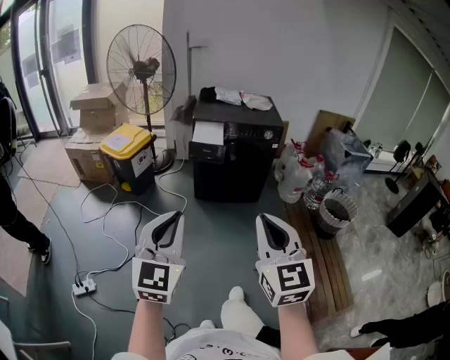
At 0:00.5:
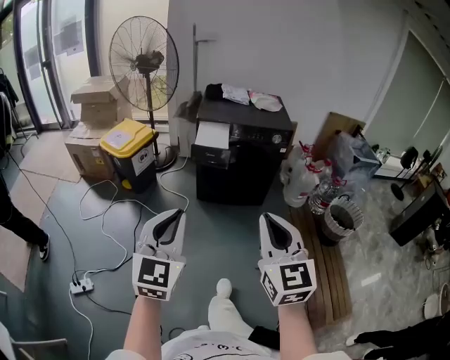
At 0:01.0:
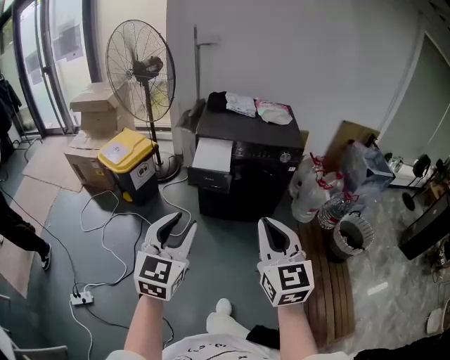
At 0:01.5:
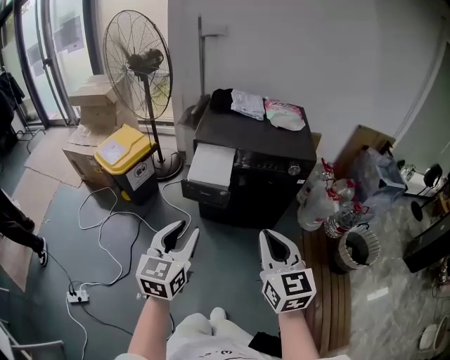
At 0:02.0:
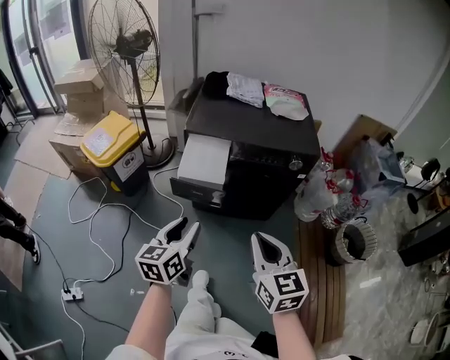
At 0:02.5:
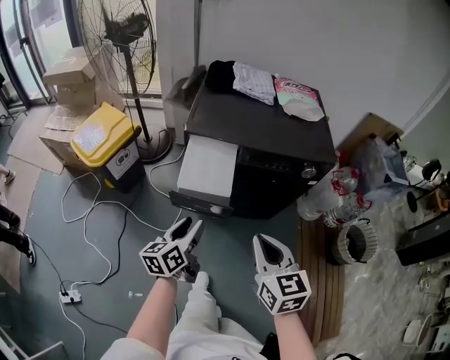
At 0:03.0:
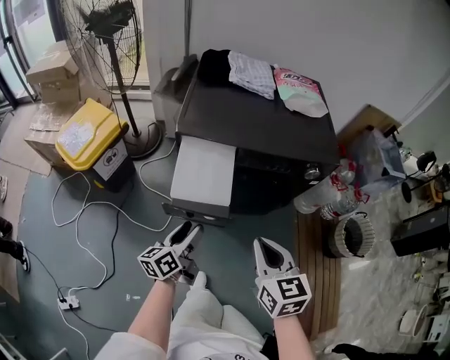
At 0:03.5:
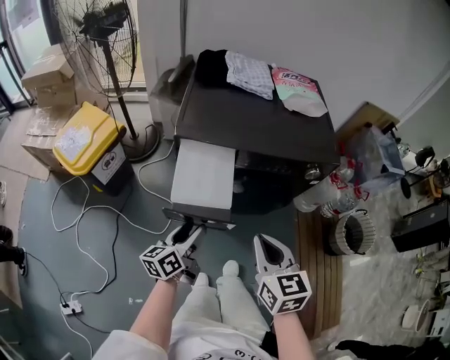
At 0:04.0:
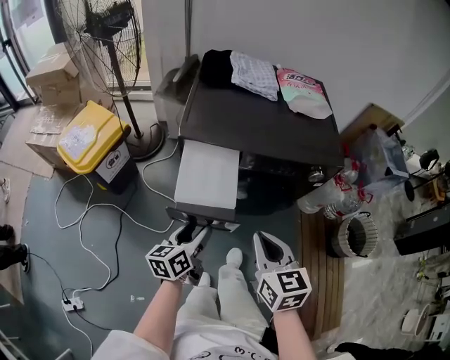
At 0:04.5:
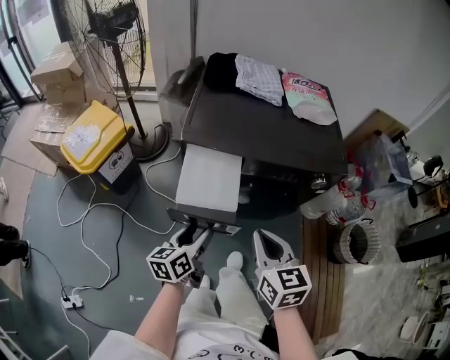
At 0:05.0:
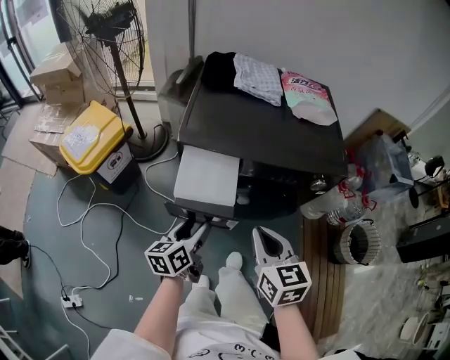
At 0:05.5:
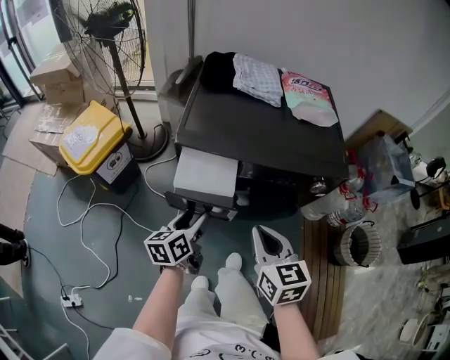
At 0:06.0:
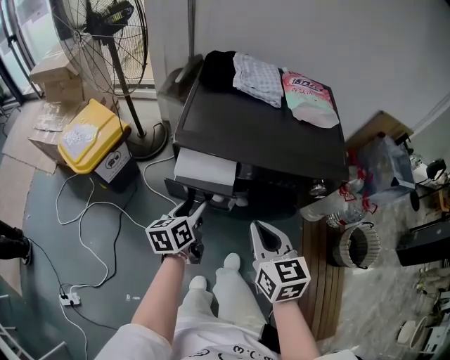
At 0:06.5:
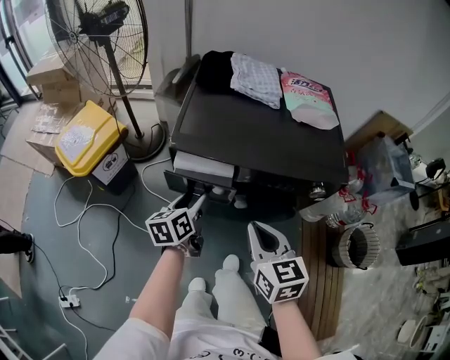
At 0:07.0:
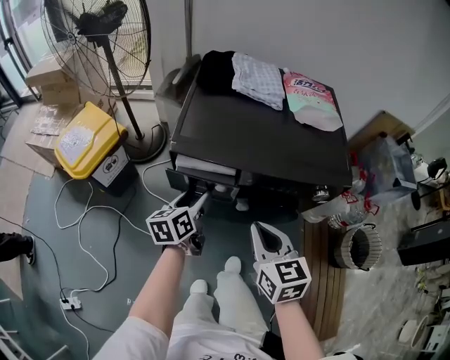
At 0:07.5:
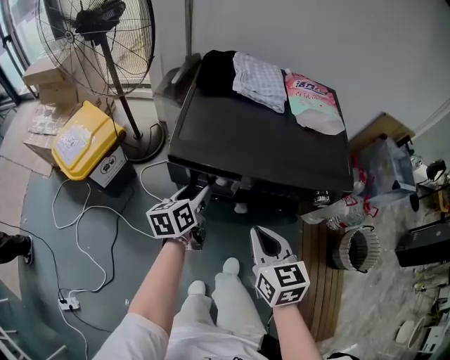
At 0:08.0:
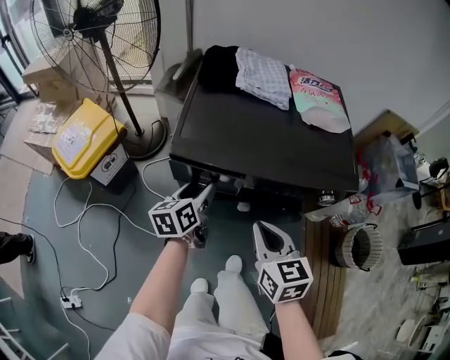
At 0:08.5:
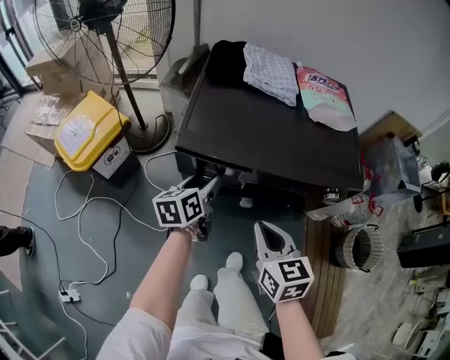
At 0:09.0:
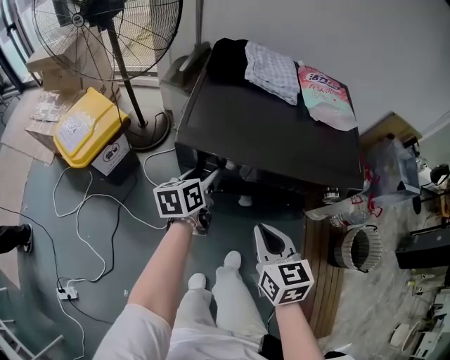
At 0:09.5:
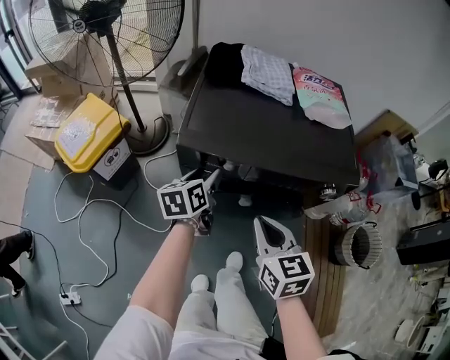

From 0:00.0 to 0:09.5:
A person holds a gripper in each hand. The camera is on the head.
From 0:00.0 to 0:02.0: The pair of grippers is taken forward, about 50 cm. The left gripper heads downward, covering roughly 20 cm, rotates about 40 degrees, and opens its fingers. Meanwhile the right gripper swivels some 20 degrees.
From 0:02.0 to 0:04.0: The two grippers go roughly 20 cm forward and downward.
From 0:04.0 to 0:05.5: Both grippers travel together forward, approximately 5 cm.
From 0:05.5 to 0:07.5: The left gripper goes roughly 10 cm forward. Meanwhile the right gripper heads forward, covering about 5 cm.
From 0:07.5 to 0:09.5: The grippers make only small movements.

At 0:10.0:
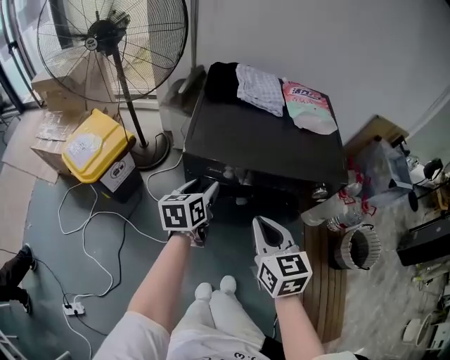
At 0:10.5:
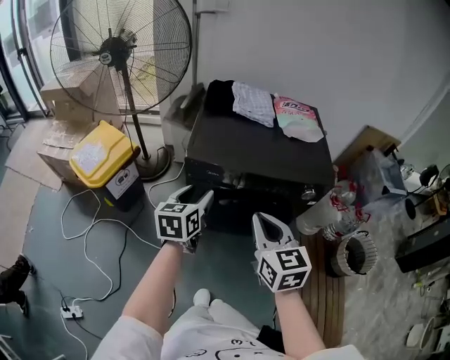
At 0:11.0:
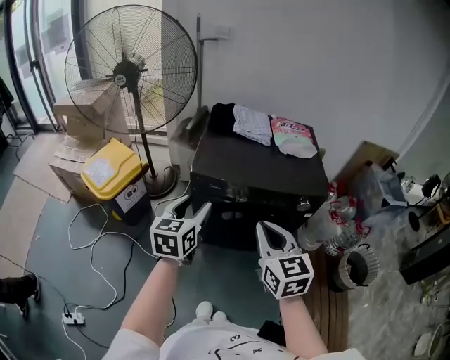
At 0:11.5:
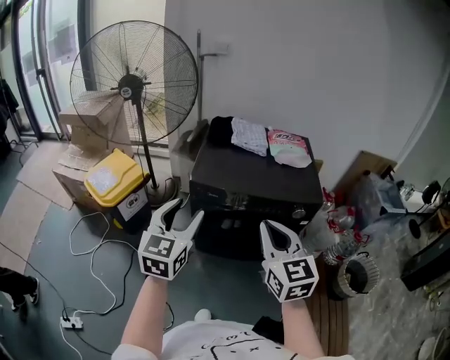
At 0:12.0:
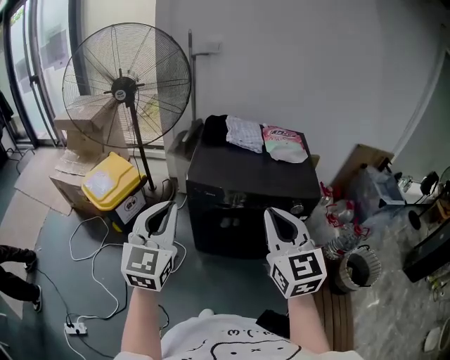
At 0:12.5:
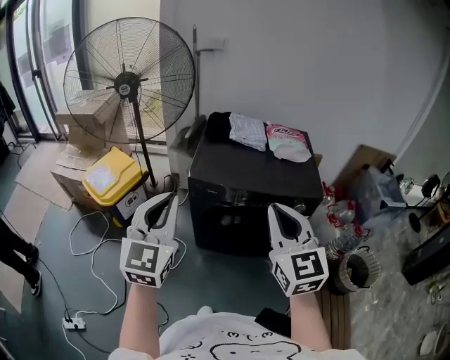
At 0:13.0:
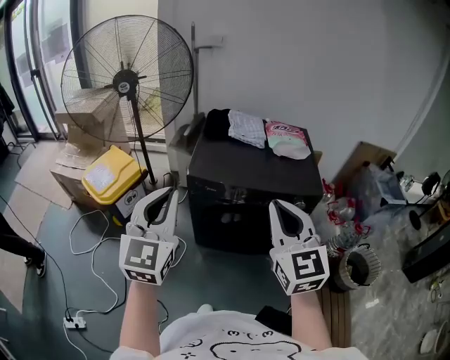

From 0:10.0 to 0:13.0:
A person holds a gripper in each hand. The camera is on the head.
From 0:10.0 to 0:11.5: The right gripper heads upward and backward, covering some 20 cm. Meanwhile the left gripper goes approximately 30 cm upward and backward, and swivels roughly 40 degrees.
From 0:11.5 to 0:13.0: The grippers both shift upward by approximately 5 cm. The left gripper closes up.

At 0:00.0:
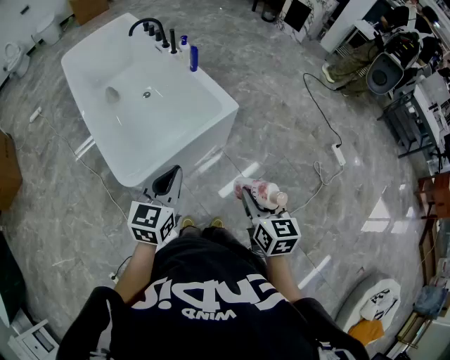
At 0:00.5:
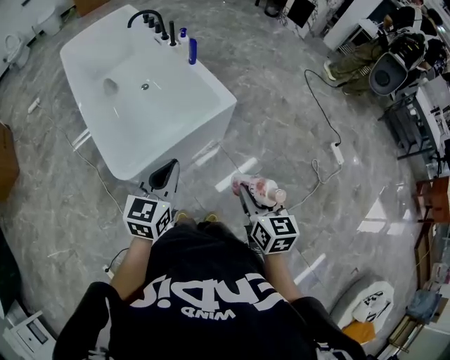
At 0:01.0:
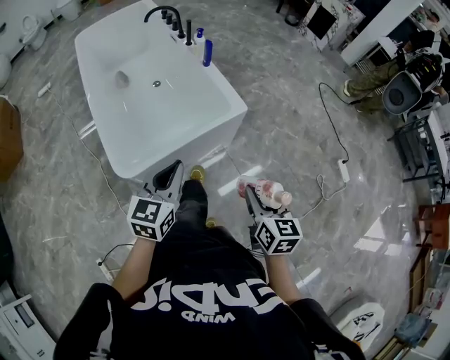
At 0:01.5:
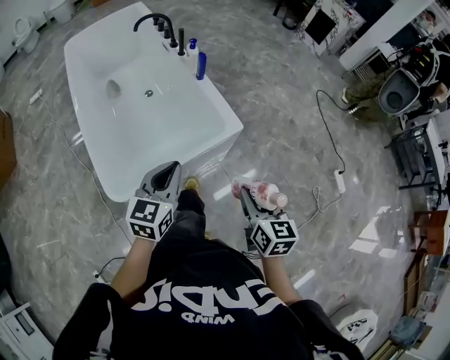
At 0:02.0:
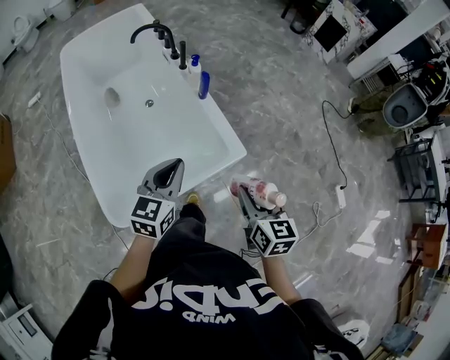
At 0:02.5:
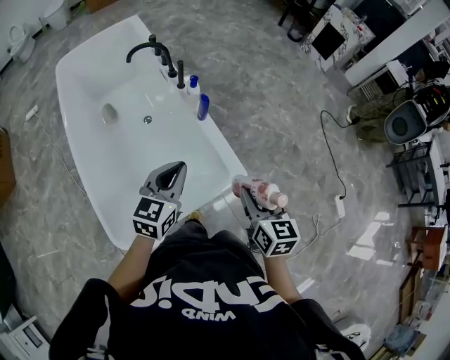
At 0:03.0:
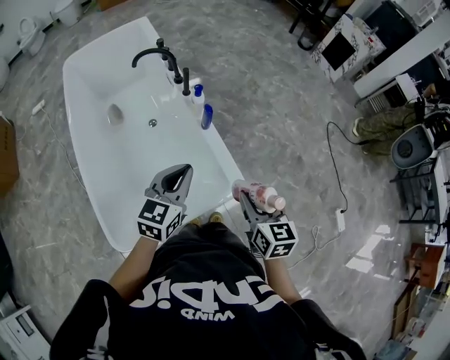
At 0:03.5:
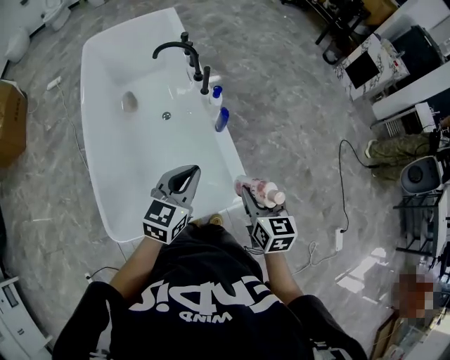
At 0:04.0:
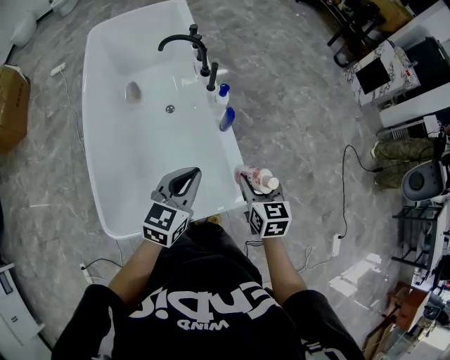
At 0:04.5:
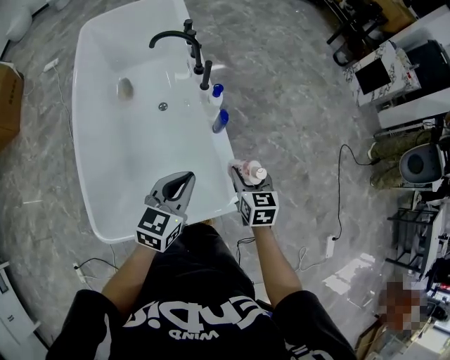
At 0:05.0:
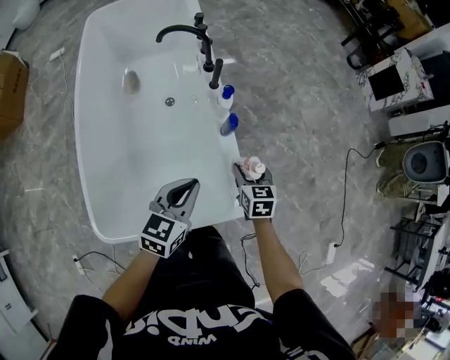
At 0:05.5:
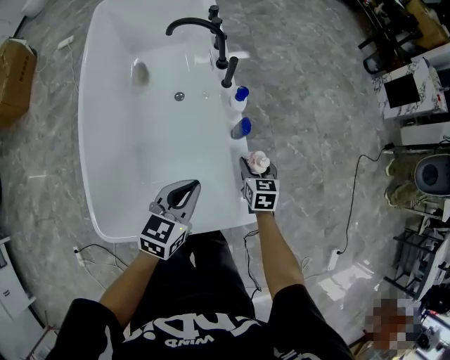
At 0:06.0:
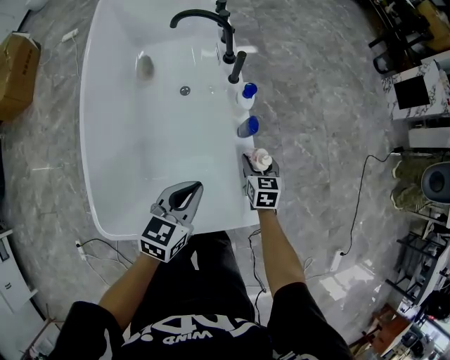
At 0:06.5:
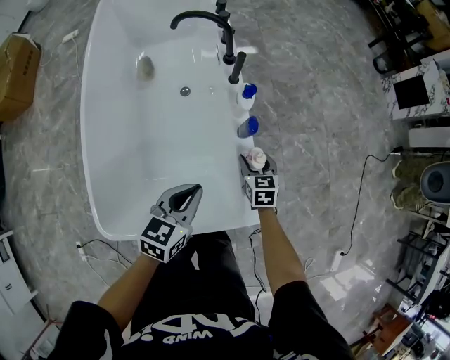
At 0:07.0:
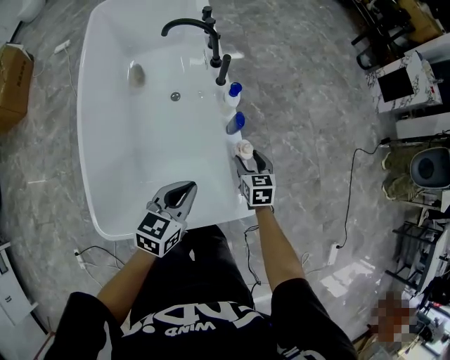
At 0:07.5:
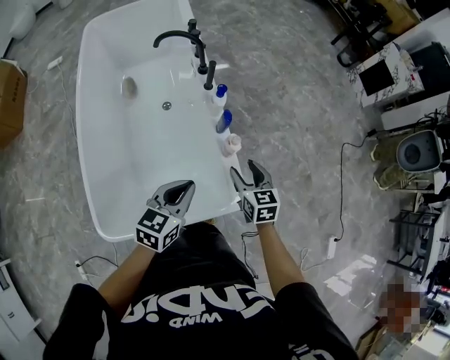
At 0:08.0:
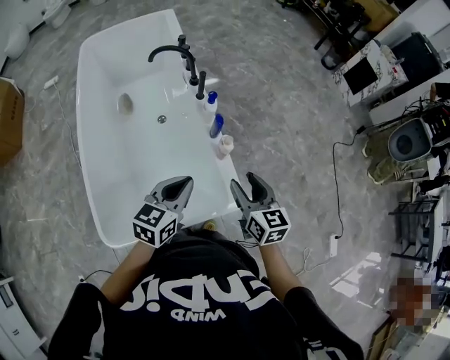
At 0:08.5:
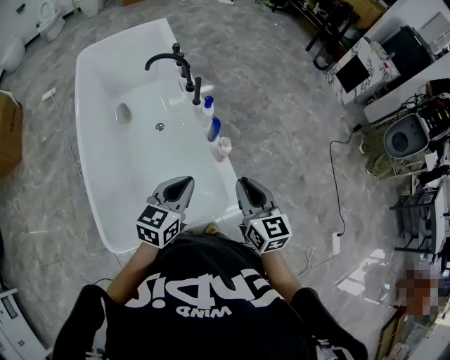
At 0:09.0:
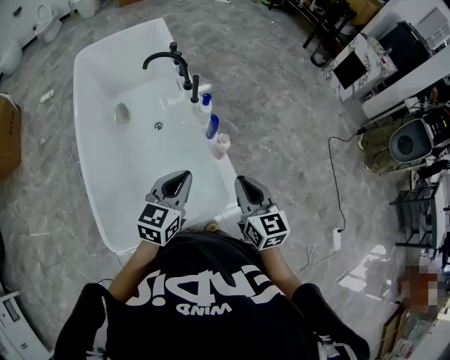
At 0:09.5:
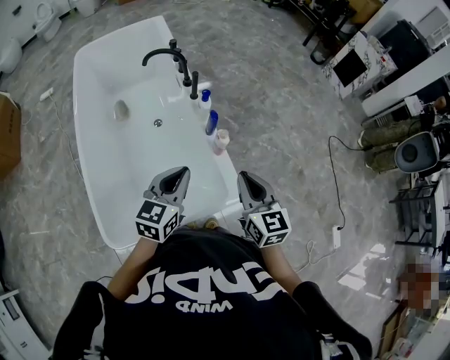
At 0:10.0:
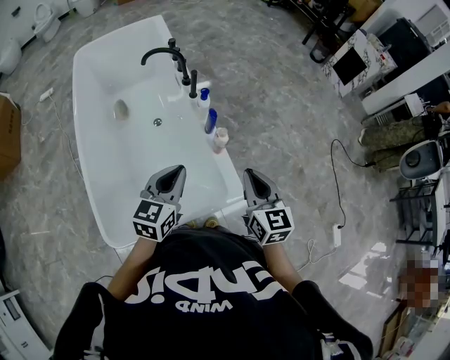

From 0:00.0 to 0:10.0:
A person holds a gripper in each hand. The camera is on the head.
From 0:00.0 to 0:02.0: Both grippers move forward, some 30 cm.
From 0:02.0 to 0:04.0: The right gripper travels forward by roughly 25 cm. The left gripper shifts roughly 15 cm forward.
From 0:04.0 to 0:06.0: The left gripper travels downward and forward by about 15 cm. The right gripper goes about 25 cm downward and forward.
From 0:06.0 to 0:08.0: The right gripper travels upward and backward by roughly 30 cm, and turns by about 20 degrees, while the left gripper is displaced upward and backward by roughly 15 cm.
From 0:08.0 to 0:10.0: The right gripper moves approximately 5 cm, and closes.

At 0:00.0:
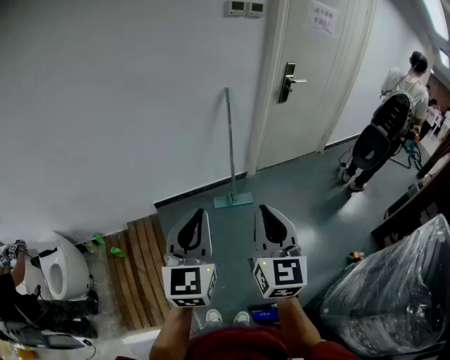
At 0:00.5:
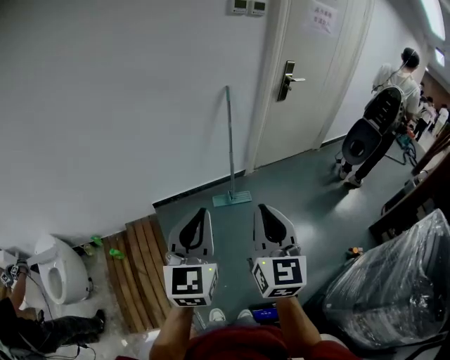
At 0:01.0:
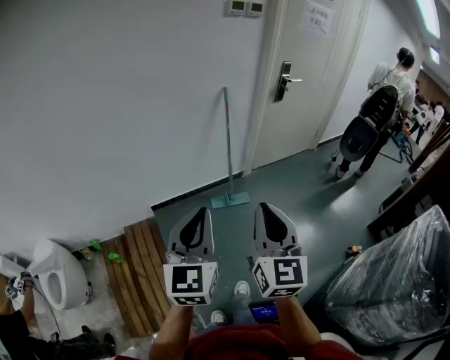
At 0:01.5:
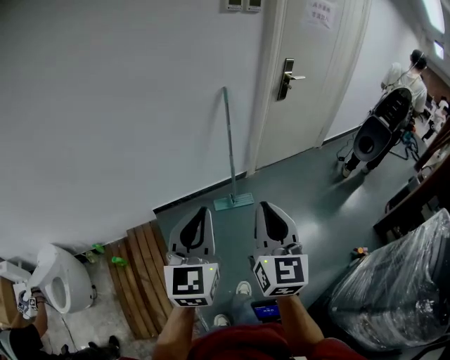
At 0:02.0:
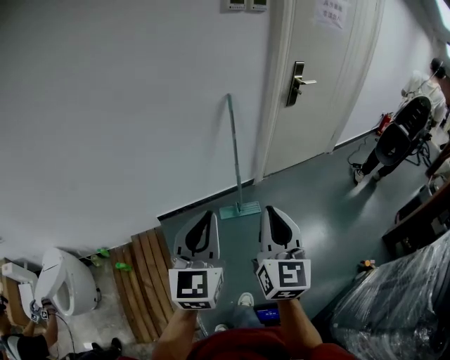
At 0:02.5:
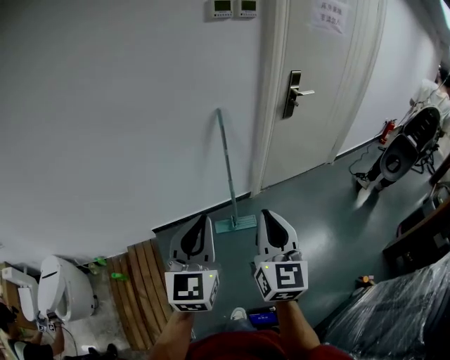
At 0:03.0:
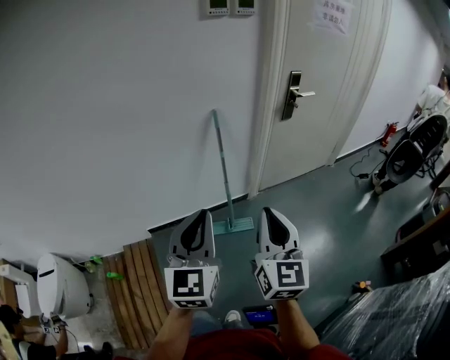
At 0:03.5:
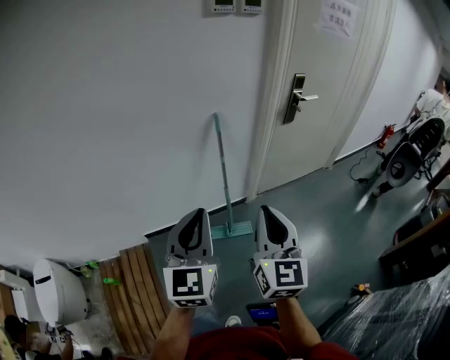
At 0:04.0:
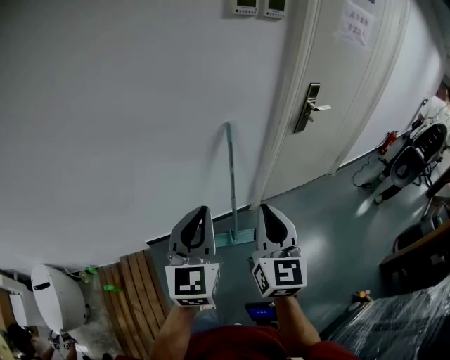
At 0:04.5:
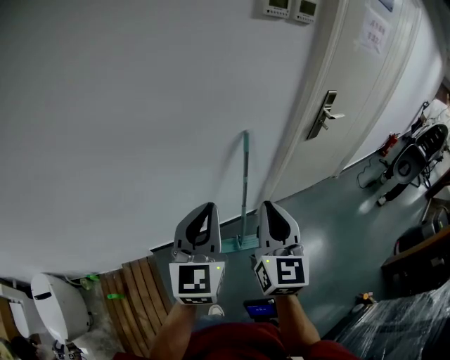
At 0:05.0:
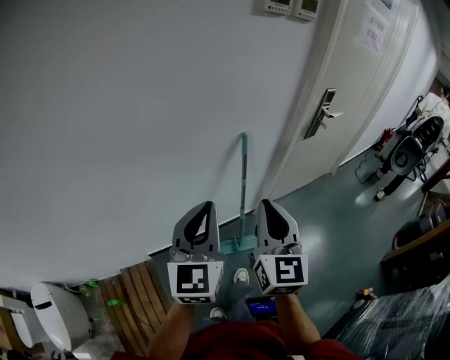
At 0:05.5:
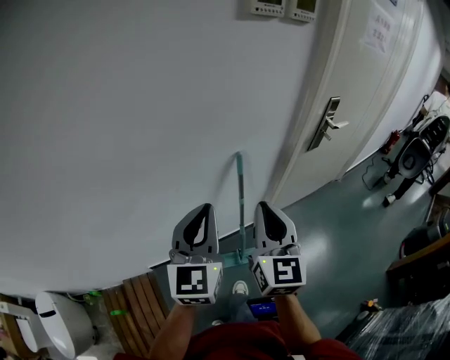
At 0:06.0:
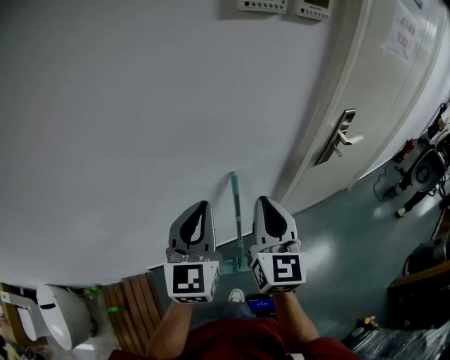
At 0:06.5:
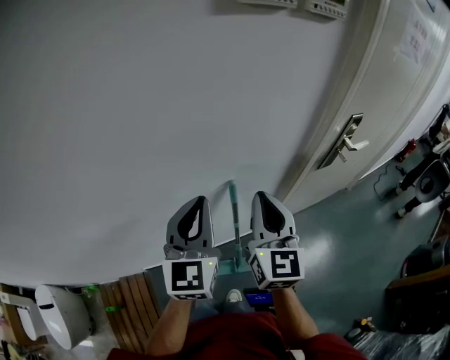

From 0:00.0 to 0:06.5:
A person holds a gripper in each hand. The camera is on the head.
From 0:00.0 to 0:02.0: The two grippers go roughly 15 cm forward.
From 0:02.0 to 0:04.5: Both grippers travel together forward, some 35 cm.
From 0:04.5 to 0:06.5: The grippers both shift forward by some 30 cm.
